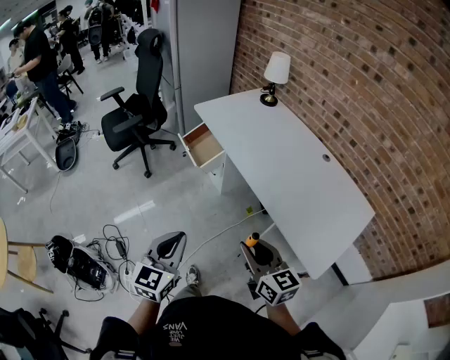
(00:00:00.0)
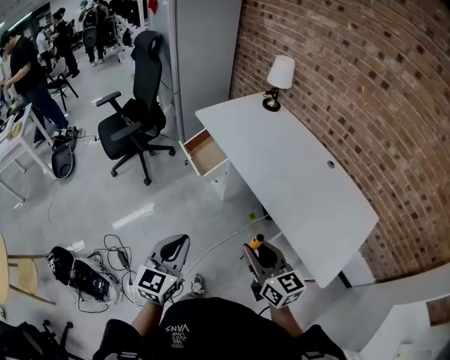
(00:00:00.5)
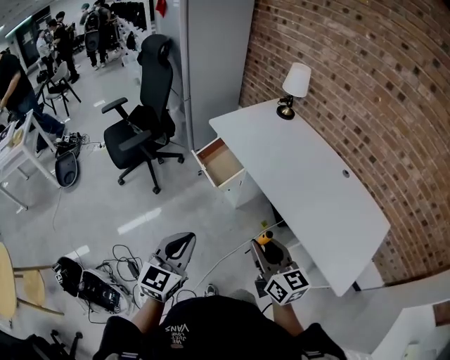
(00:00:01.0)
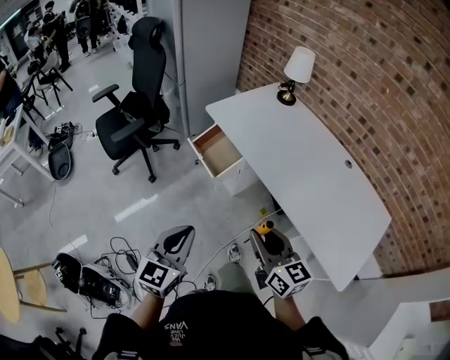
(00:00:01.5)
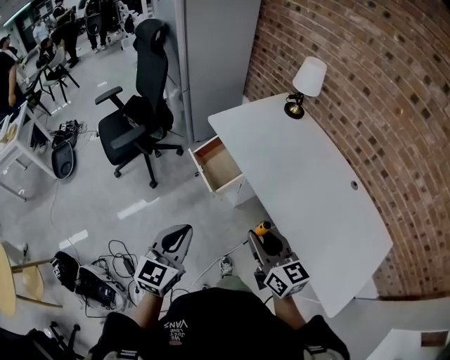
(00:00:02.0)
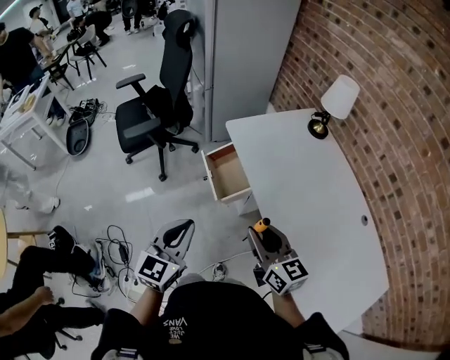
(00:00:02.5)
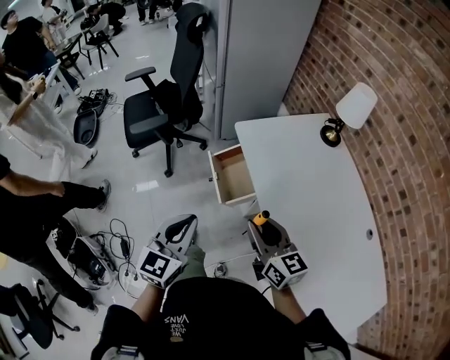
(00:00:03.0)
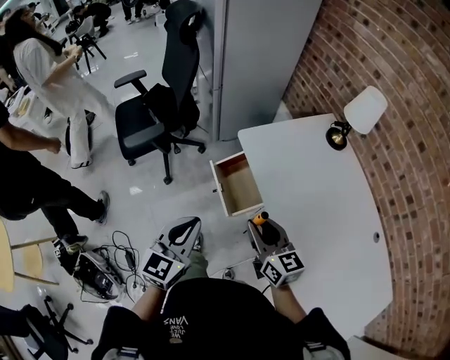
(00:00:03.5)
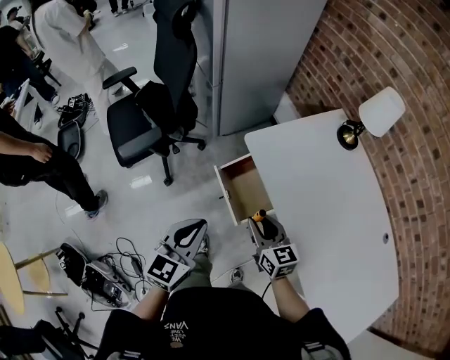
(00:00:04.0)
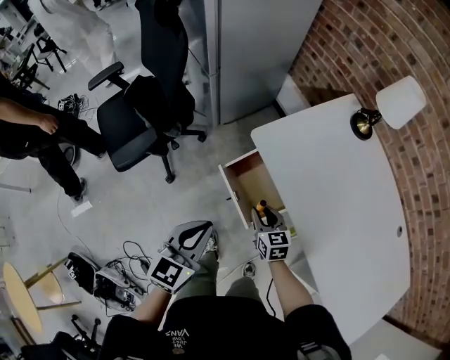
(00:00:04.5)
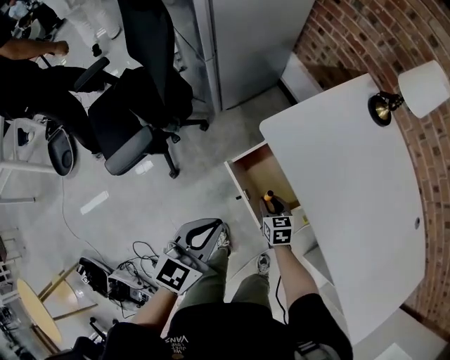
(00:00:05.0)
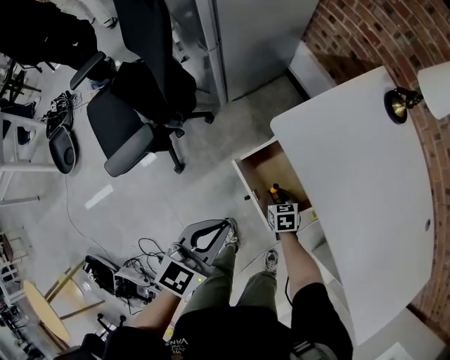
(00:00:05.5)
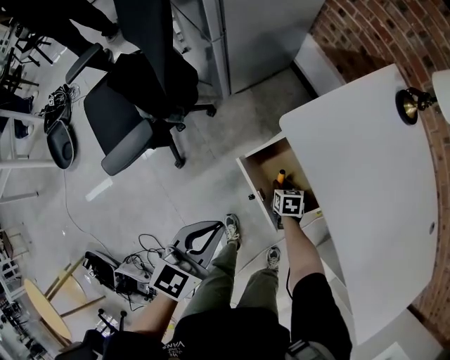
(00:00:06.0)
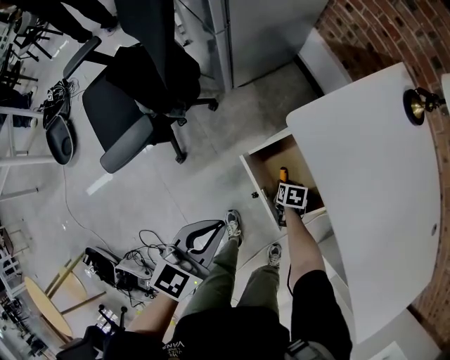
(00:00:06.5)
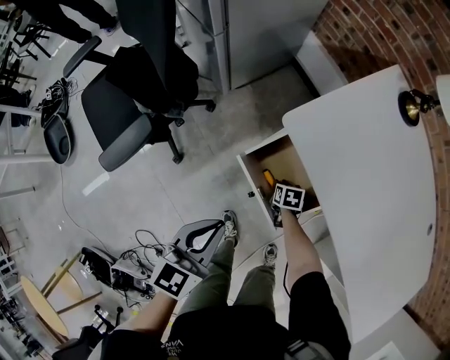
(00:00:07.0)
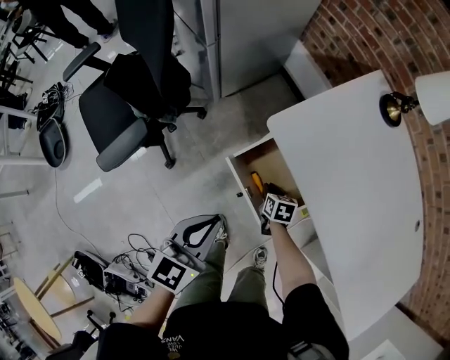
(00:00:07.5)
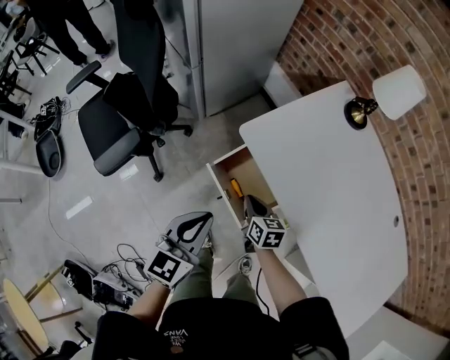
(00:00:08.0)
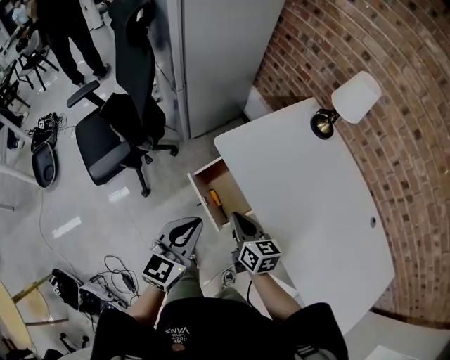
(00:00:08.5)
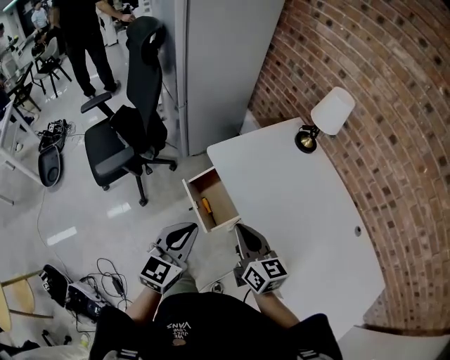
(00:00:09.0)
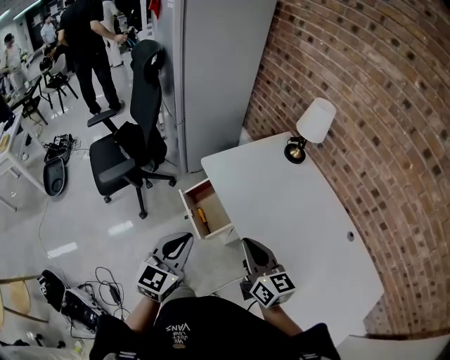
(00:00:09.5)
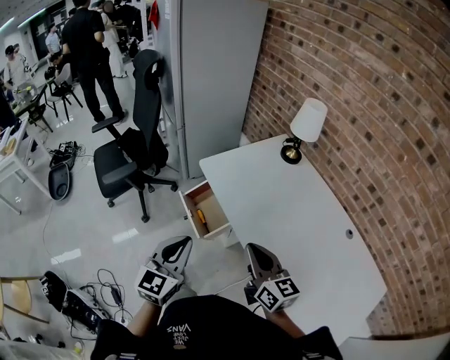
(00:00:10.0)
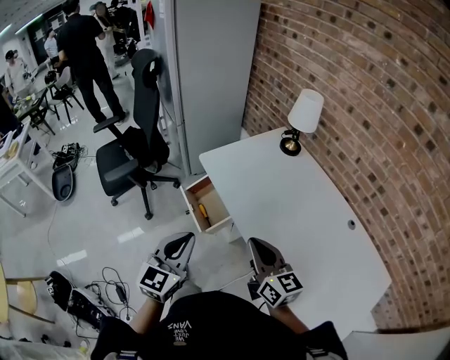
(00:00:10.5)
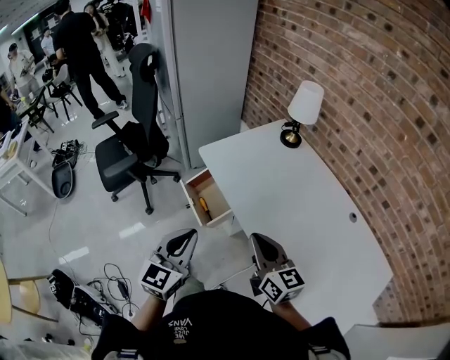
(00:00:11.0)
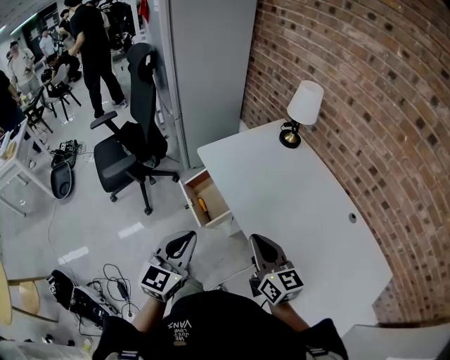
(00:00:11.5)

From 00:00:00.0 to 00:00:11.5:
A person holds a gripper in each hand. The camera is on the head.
From 00:00:00.0 to 00:00:02.0: Both grippers travel together forward, some 25 cm.
From 00:00:02.0 to 00:00:04.0: The right gripper shifts some 35 cm forward and downward. Meanwhile the left gripper heads forward, covering some 30 cm.
From 00:00:04.0 to 00:00:06.0: The right gripper goes roughly 40 cm downward and forward, and angles its fingers downward, by approximately 40 degrees; the left gripper is displaced downward, forward and to the left by approximately 20 cm.
From 00:00:06.0 to 00:00:07.5: The right gripper shifts approximately 5 cm upward.
From 00:00:07.5 to 00:00:09.5: The right gripper is displaced upward and backward by approximately 50 cm, and points its fingers about 50 degrees further upward. The left gripper goes roughly 35 cm backward, upward and to the right.
From 00:00:09.5 to 00:00:11.5: The right gripper moves backward and to the right, some 10 cm. The left gripper is displaced backward by roughly 5 cm.

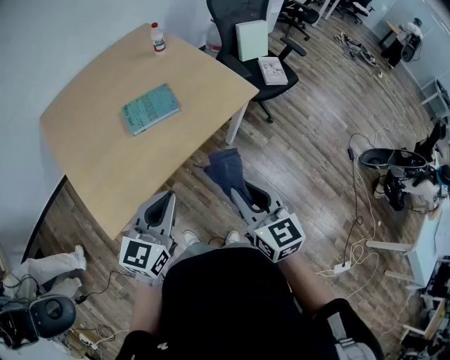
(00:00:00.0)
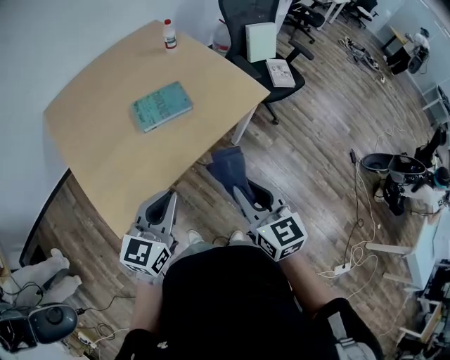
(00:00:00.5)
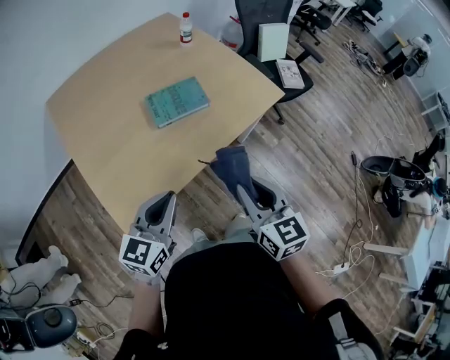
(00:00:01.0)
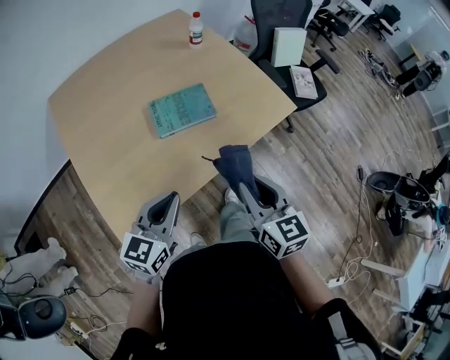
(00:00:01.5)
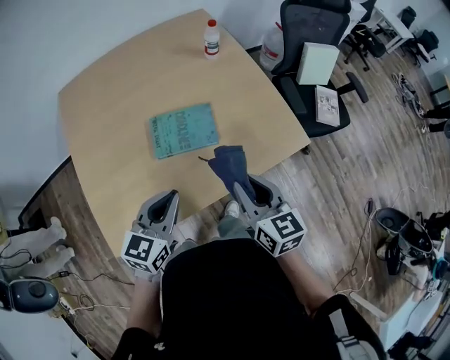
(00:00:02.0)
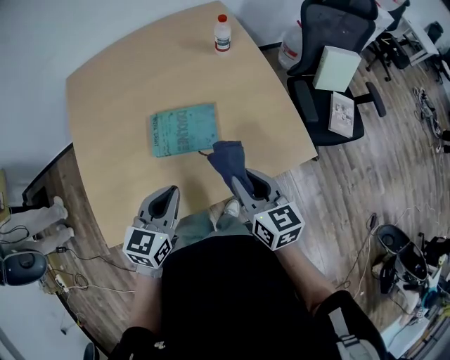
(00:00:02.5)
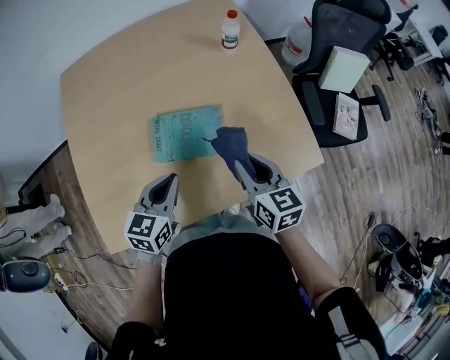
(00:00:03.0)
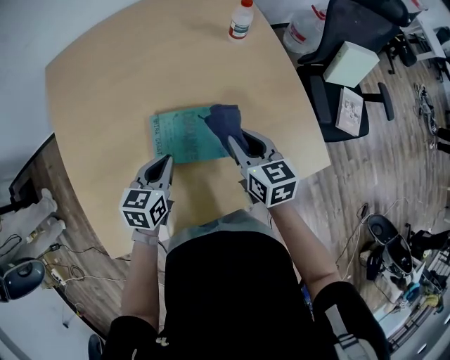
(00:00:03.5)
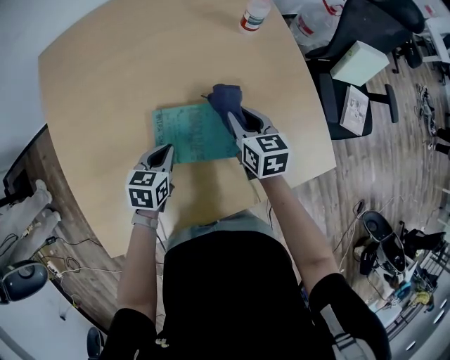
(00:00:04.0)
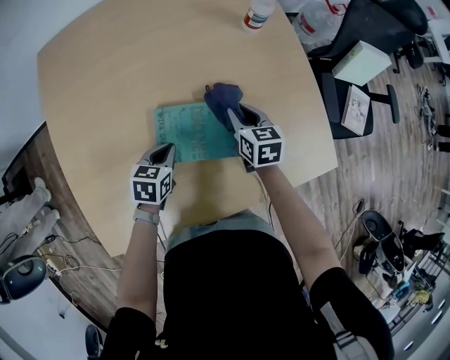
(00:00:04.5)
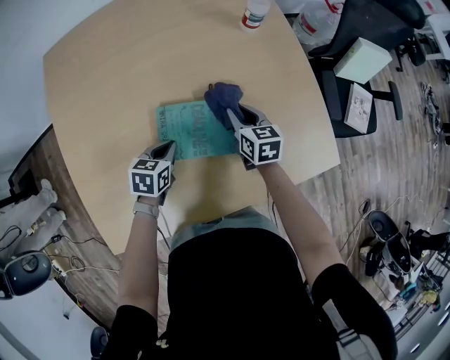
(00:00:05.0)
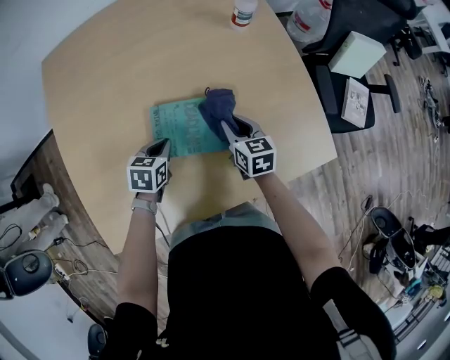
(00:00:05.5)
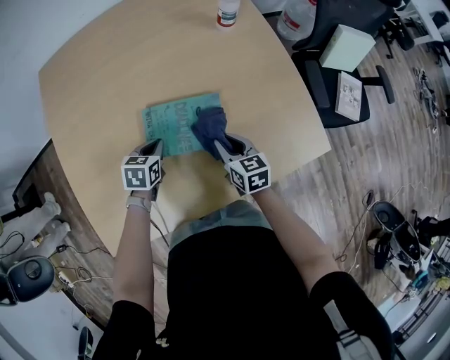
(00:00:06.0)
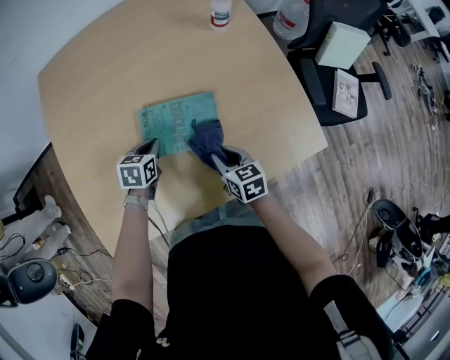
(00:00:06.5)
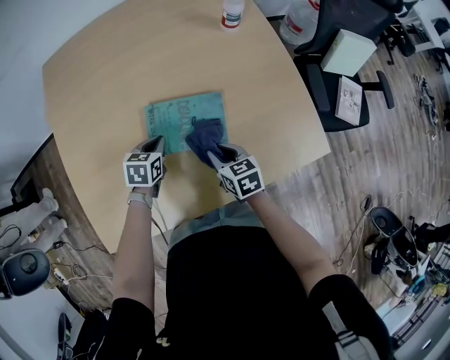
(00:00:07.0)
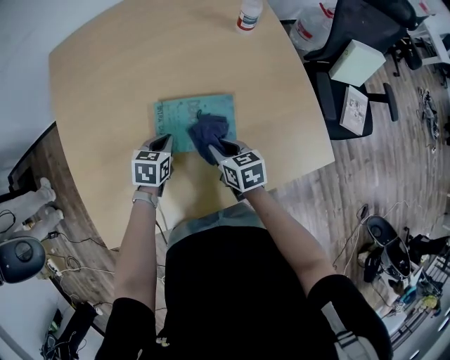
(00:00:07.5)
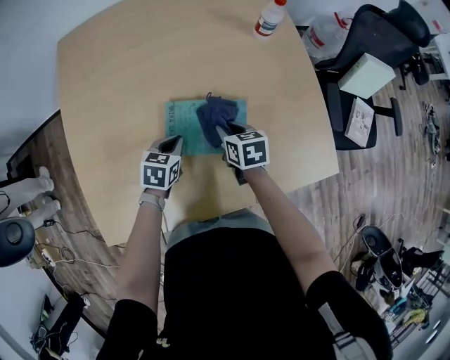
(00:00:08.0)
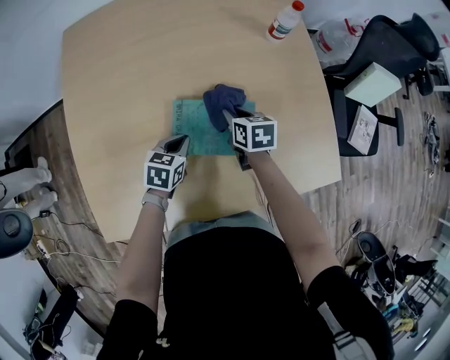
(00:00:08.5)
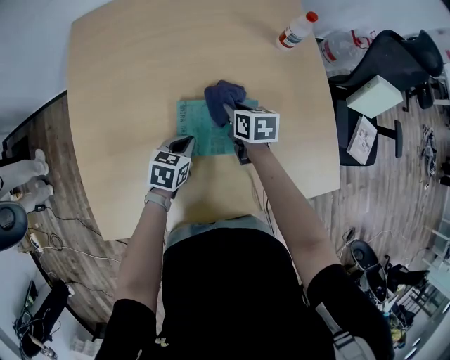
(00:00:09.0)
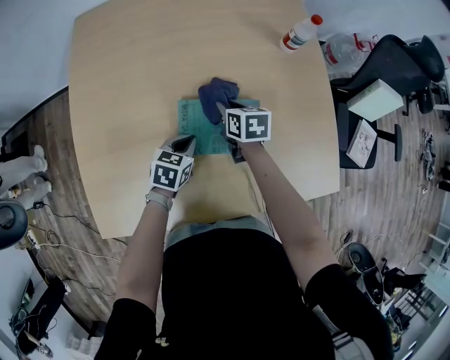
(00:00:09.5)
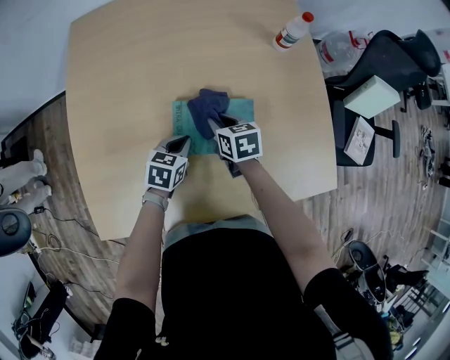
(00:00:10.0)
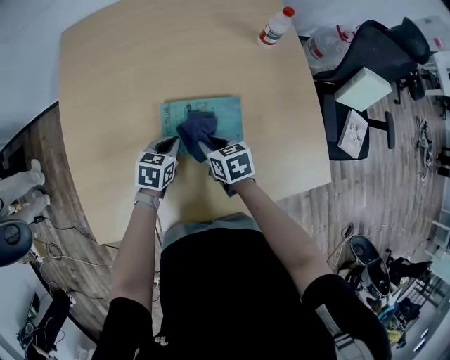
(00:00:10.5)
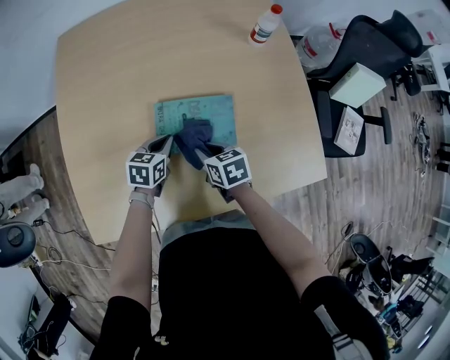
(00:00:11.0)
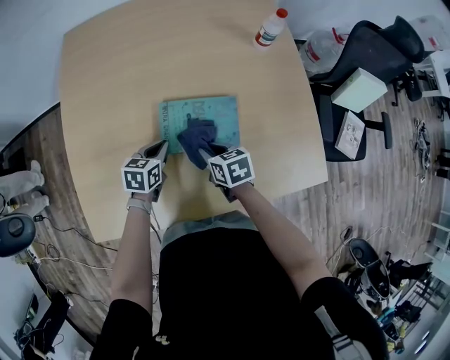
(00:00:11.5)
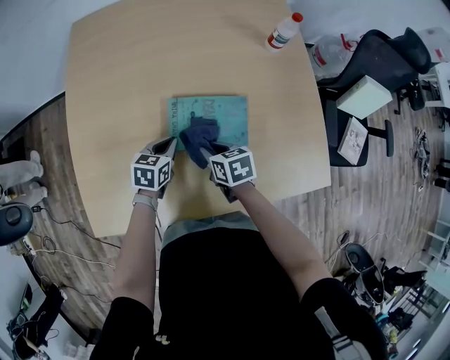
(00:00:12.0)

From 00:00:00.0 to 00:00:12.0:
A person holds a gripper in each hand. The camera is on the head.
From 00:00:00.0 to 00:00:02.0: The two grippers go approximately 25 cm forward.
From 00:00:02.0 to 00:00:04.0: The left gripper is displaced downward and forward by approximately 30 cm, and rotates approximately 30 degrees; the right gripper goes approximately 35 cm forward and downward.
From 00:00:04.0 to 00:00:06.0: The right gripper goes approximately 10 cm backward and downward.
From 00:00:06.0 to 00:00:08.0: The right gripper heads forward and to the left, covering roughly 10 cm.
From 00:00:08.0 to 00:00:10.0: The right gripper goes about 5 cm to the left.
From 00:00:10.0 to 00:00:12.0: The right gripper is displaced backward by roughly 10 cm.

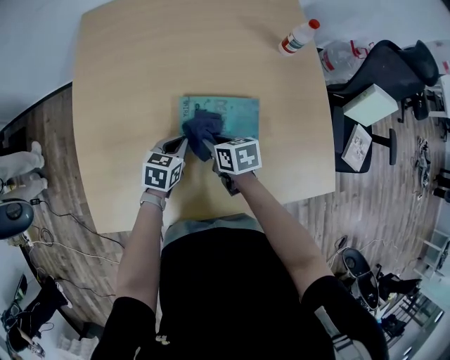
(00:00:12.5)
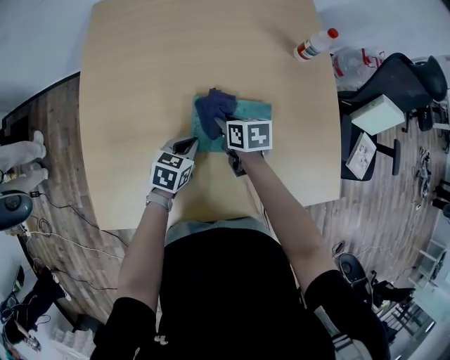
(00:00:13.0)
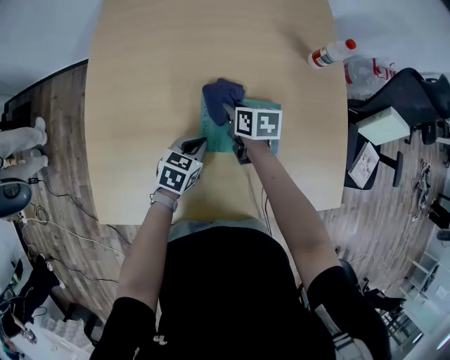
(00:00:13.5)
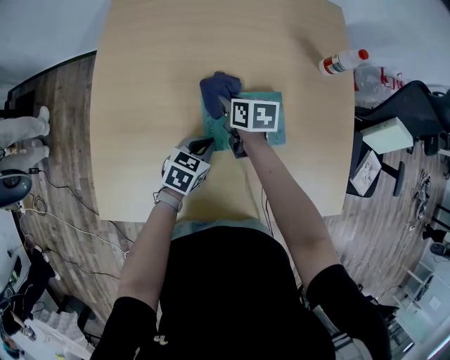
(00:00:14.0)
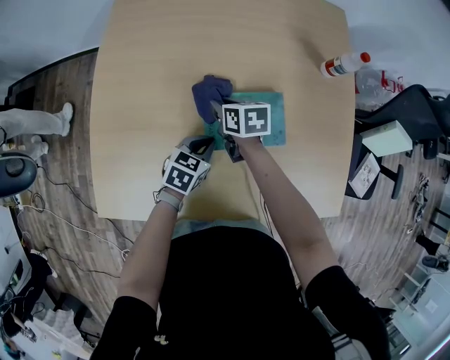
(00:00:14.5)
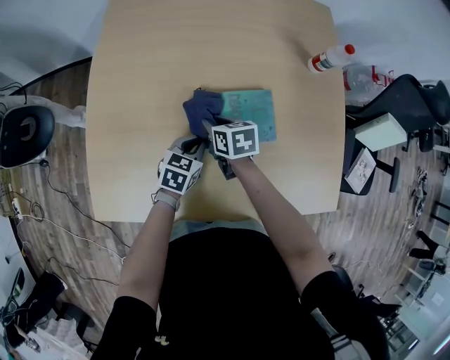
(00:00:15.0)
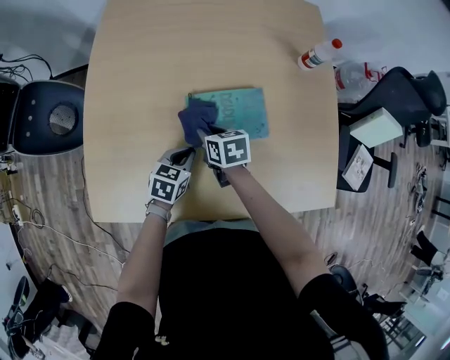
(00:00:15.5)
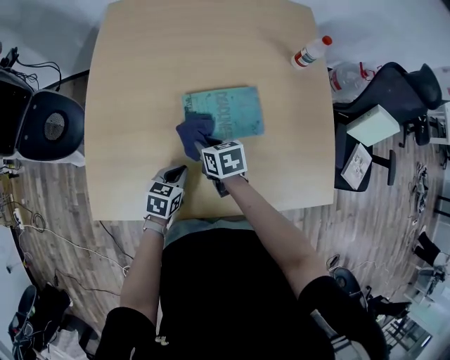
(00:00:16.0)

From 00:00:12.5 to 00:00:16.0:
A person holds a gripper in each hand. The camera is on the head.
From 00:00:12.5 to 00:00:14.5: The right gripper travels forward and to the left by some 15 cm.
From 00:00:14.5 to 00:00:16.0: Both grippers move backward, roughly 10 cm.
